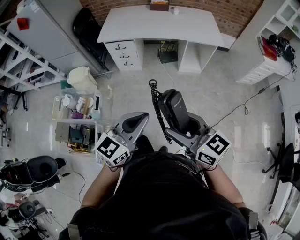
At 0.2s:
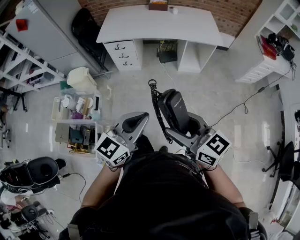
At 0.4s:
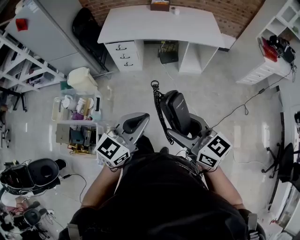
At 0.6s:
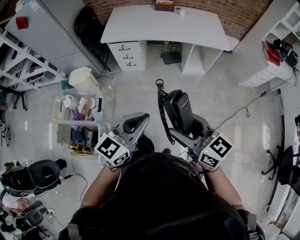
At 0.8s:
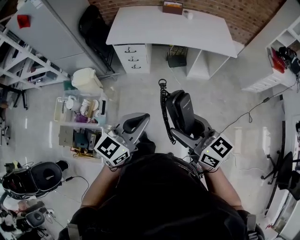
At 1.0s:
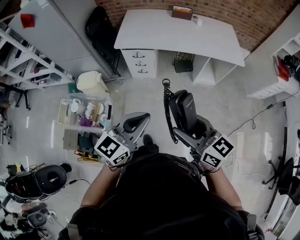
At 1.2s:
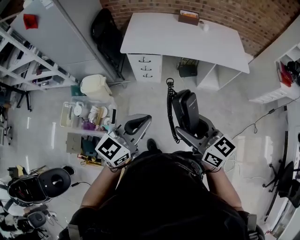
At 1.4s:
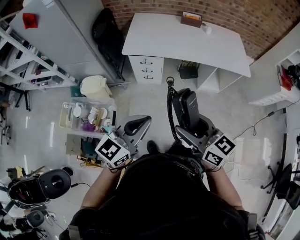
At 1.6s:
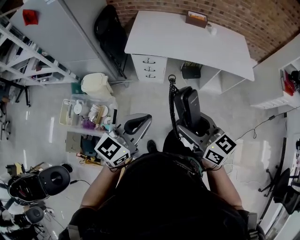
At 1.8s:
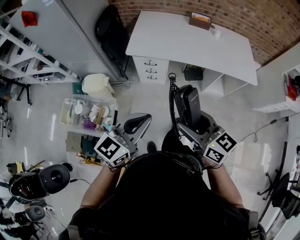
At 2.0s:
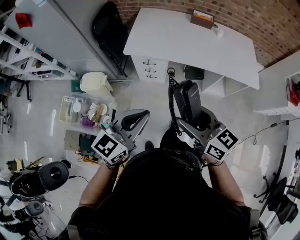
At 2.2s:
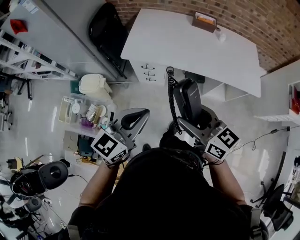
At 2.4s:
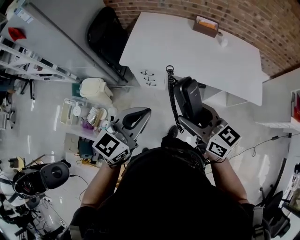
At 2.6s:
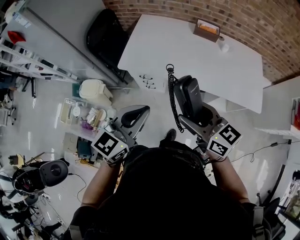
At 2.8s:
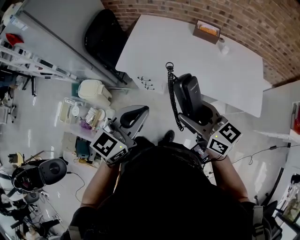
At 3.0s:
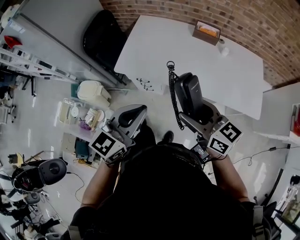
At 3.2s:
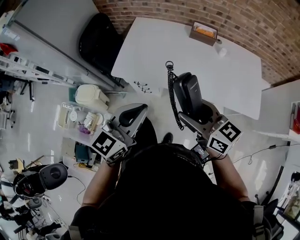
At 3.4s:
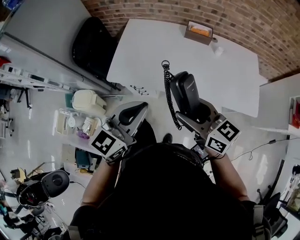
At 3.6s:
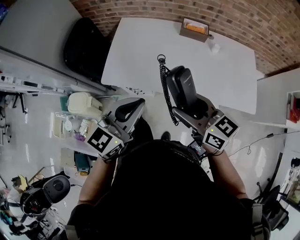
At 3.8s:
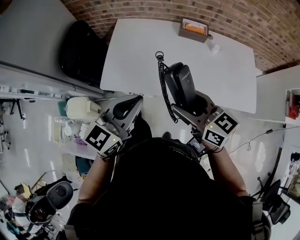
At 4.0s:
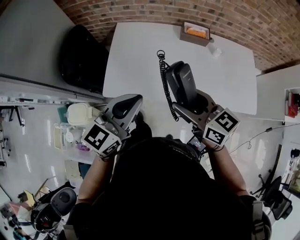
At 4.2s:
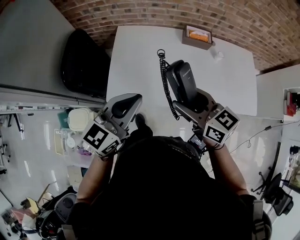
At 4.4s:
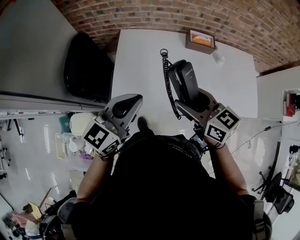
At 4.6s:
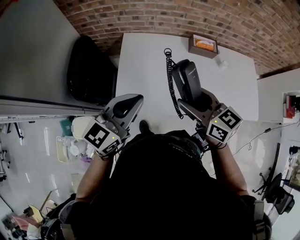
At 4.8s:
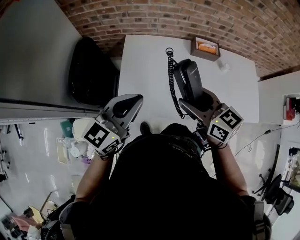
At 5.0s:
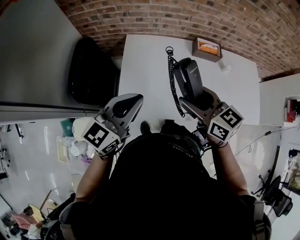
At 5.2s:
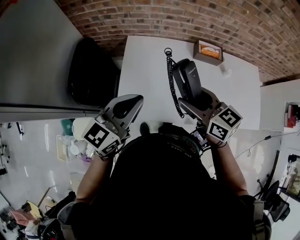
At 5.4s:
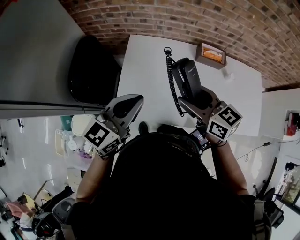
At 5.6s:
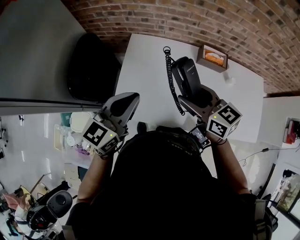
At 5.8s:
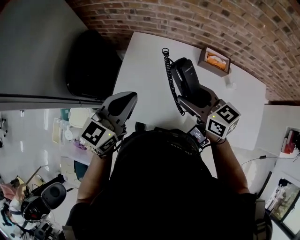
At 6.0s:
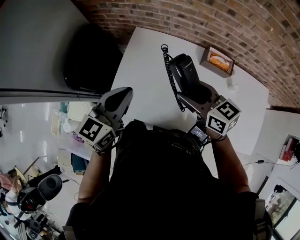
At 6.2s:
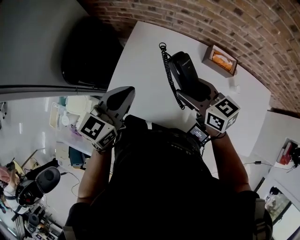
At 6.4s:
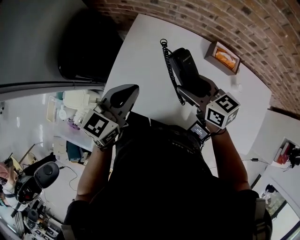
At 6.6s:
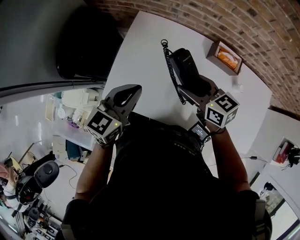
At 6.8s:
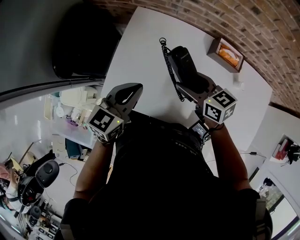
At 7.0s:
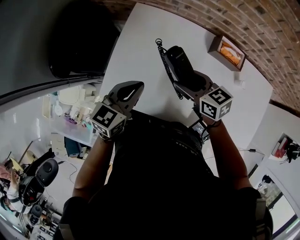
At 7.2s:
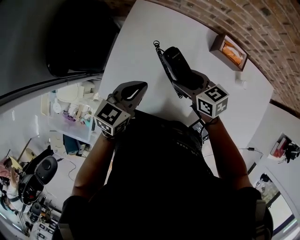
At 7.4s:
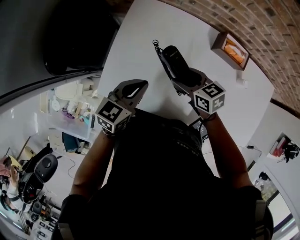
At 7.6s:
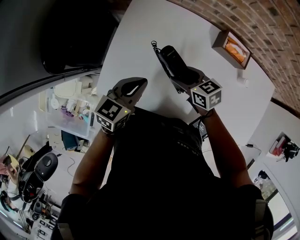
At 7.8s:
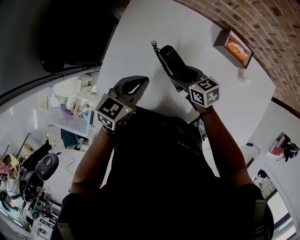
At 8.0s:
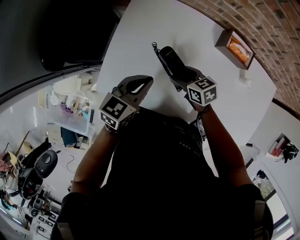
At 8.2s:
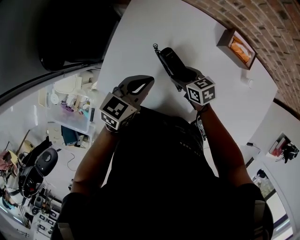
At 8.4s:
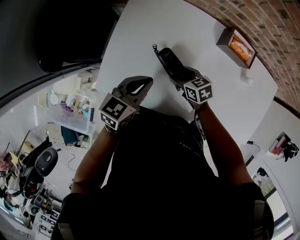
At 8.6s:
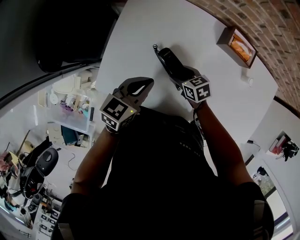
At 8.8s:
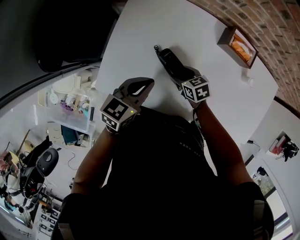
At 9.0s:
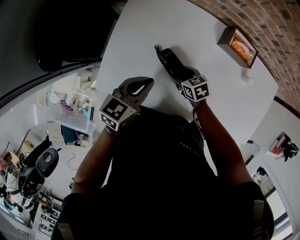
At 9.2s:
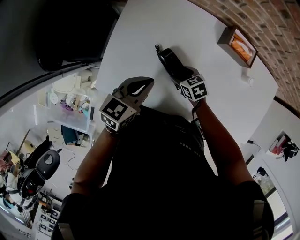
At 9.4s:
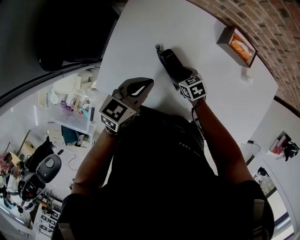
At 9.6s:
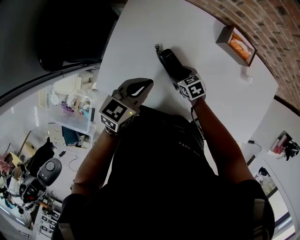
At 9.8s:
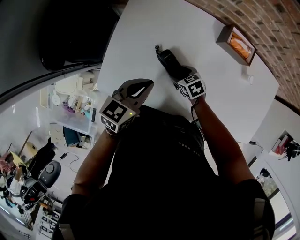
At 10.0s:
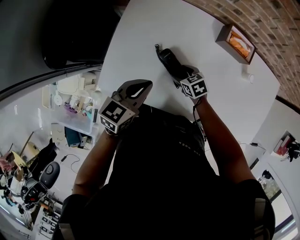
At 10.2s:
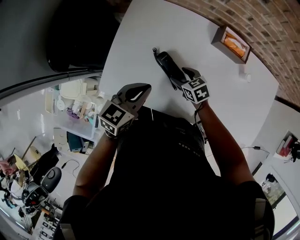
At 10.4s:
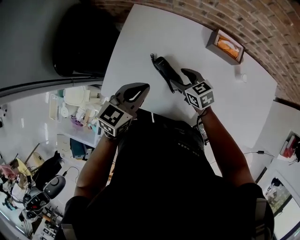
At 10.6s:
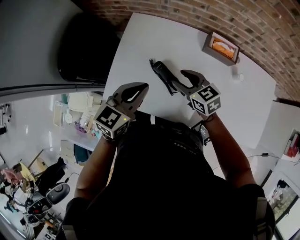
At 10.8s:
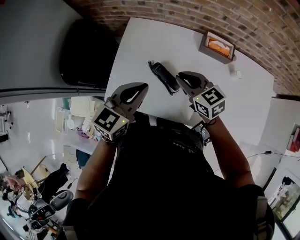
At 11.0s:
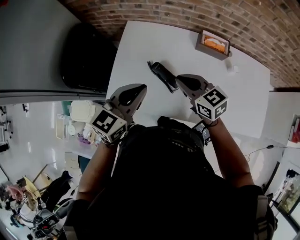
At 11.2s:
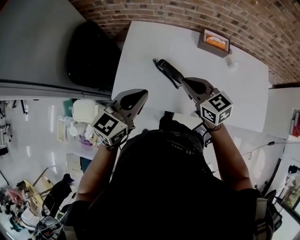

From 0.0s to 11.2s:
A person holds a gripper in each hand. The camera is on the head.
From 0.0s to 1.6s: Both grippers move forward and to the left, approximately 35 cm.
From 1.6s to 3.2s: Both grippers travel together forward and to the right, about 35 cm.
From 3.2s to 4.8s: The two grippers go roughly 30 cm forward and to the left.
From 4.8s to 6.4s: The left gripper is displaced downward, forward and to the right by approximately 15 cm, and changes its angle by about 30 degrees. Meanwhile the right gripper moves forward, downward and to the right, some 20 cm, and changes its angle by some 20 degrees.
From 6.4s to 8.0s: The two grippers go roughly 20 cm downward. The right gripper turns by approximately 20 degrees.
From 8.0s to 9.6s: The right gripper goes approximately 10 cm downward.
From 9.6s to 11.2s: The left gripper heads upward and backward, covering some 20 cm; the right gripper moves upward, some 30 cm, tilts its fingers approximately 40 degrees upward, and closes.

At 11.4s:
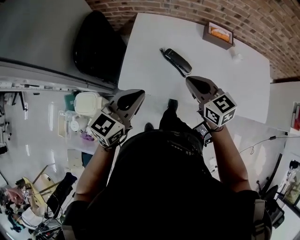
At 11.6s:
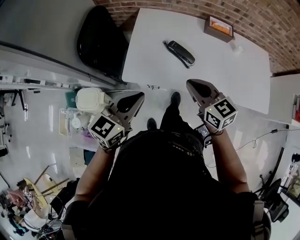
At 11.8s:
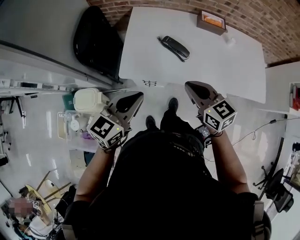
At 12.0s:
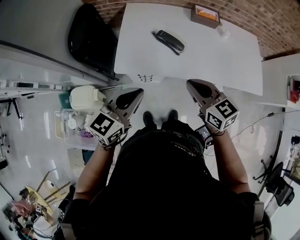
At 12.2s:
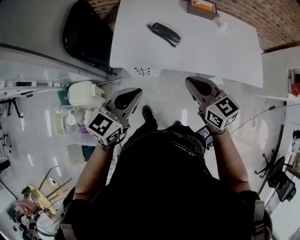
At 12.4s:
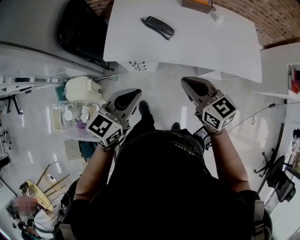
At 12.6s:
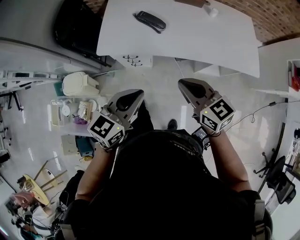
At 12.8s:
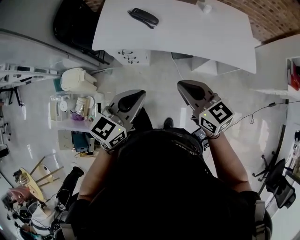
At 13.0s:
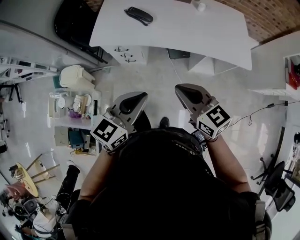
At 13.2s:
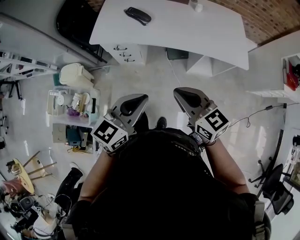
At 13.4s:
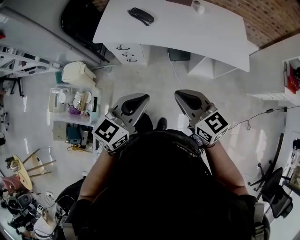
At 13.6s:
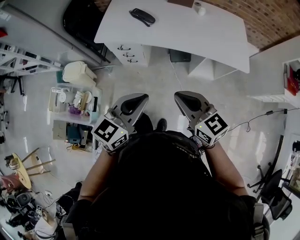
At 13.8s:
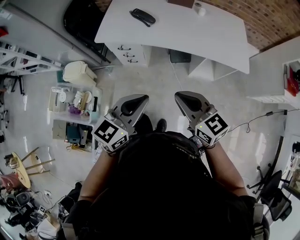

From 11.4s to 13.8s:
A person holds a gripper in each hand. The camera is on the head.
From 11.4s to 12.6s: The left gripper goes about 25 cm backward and to the right. Meanwhile the right gripper moves backward, roughly 25 cm.
From 12.6s to 13.8s: Both grippers travel together backward and to the right, some 20 cm.

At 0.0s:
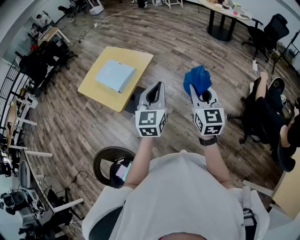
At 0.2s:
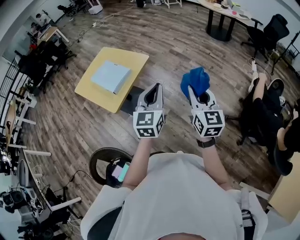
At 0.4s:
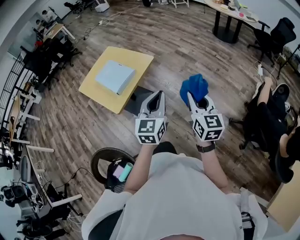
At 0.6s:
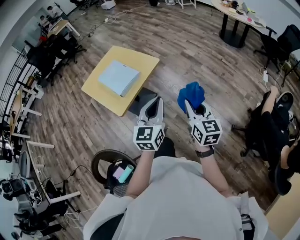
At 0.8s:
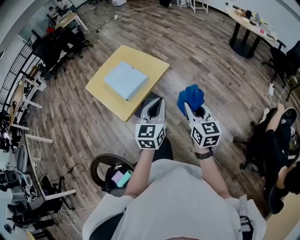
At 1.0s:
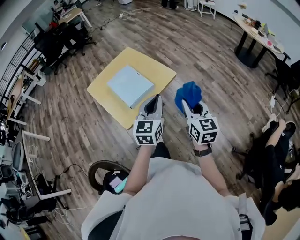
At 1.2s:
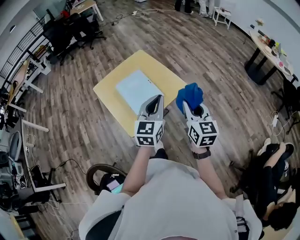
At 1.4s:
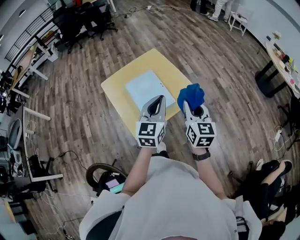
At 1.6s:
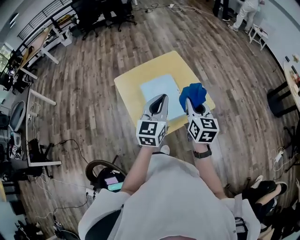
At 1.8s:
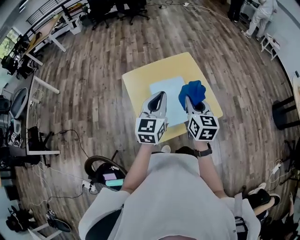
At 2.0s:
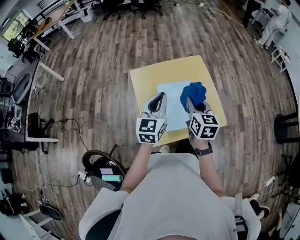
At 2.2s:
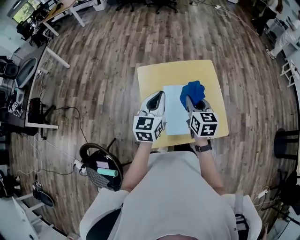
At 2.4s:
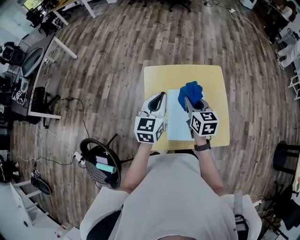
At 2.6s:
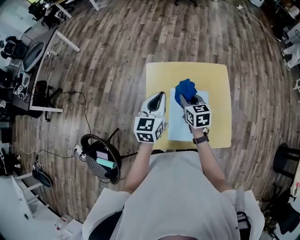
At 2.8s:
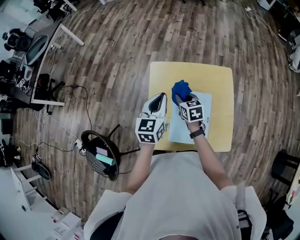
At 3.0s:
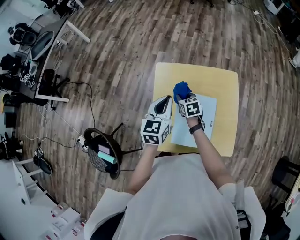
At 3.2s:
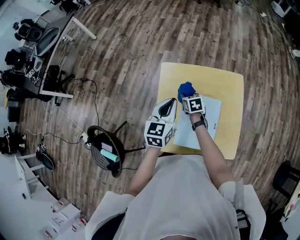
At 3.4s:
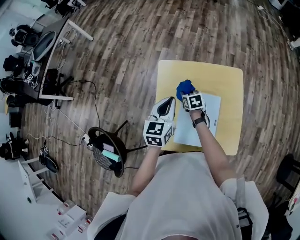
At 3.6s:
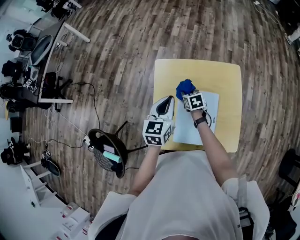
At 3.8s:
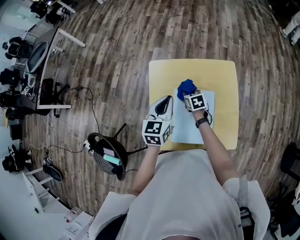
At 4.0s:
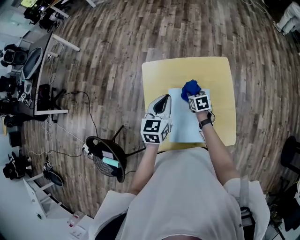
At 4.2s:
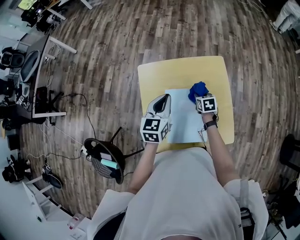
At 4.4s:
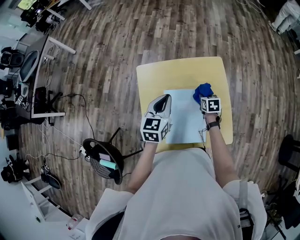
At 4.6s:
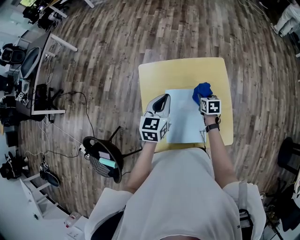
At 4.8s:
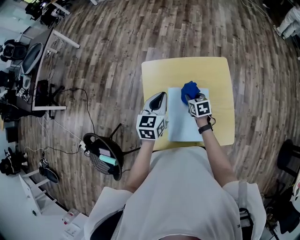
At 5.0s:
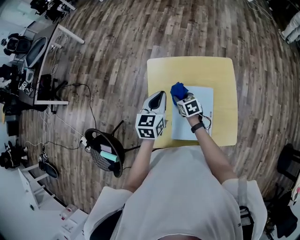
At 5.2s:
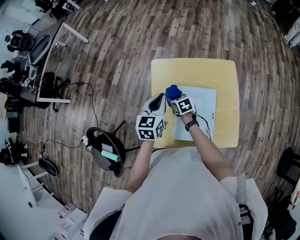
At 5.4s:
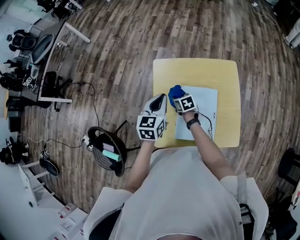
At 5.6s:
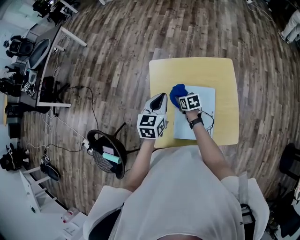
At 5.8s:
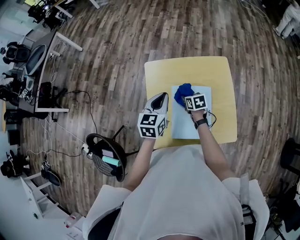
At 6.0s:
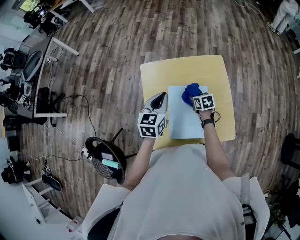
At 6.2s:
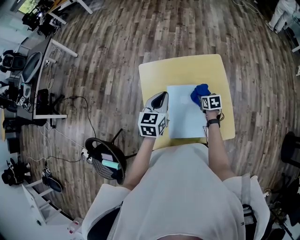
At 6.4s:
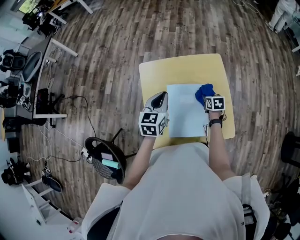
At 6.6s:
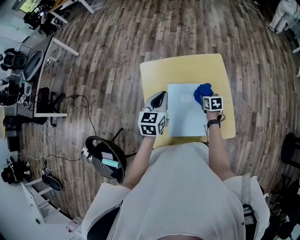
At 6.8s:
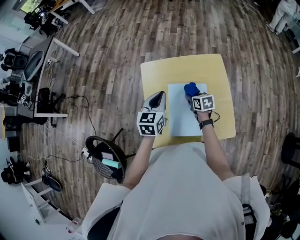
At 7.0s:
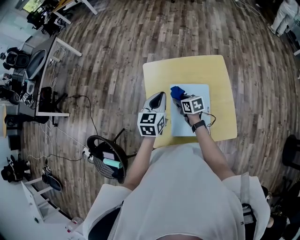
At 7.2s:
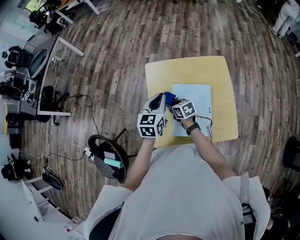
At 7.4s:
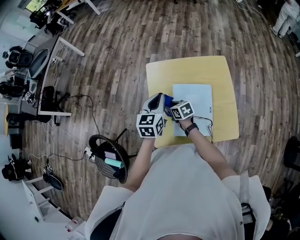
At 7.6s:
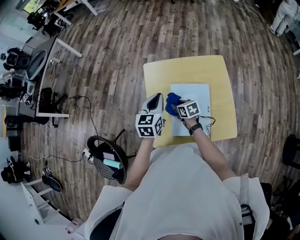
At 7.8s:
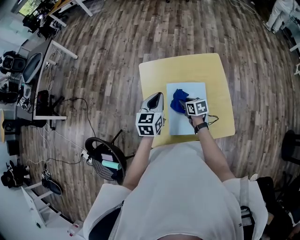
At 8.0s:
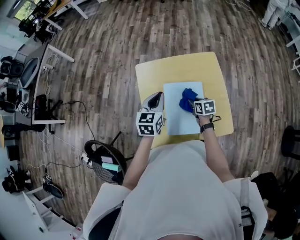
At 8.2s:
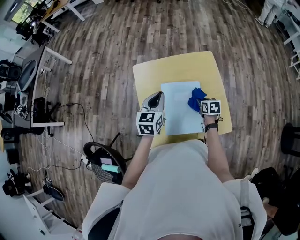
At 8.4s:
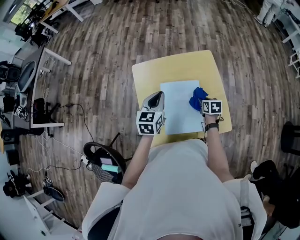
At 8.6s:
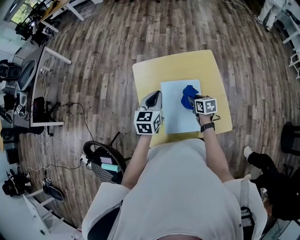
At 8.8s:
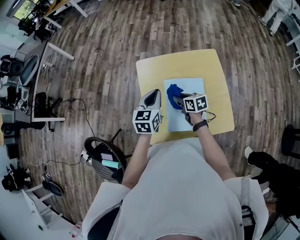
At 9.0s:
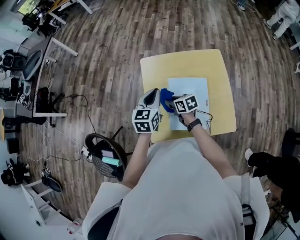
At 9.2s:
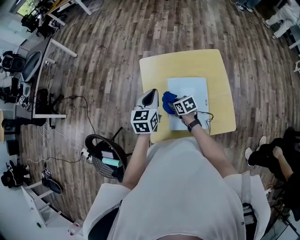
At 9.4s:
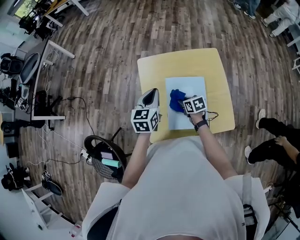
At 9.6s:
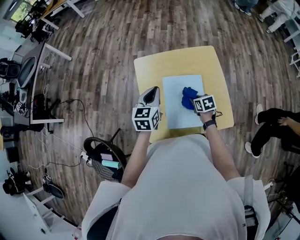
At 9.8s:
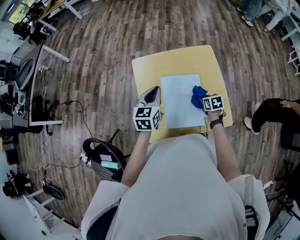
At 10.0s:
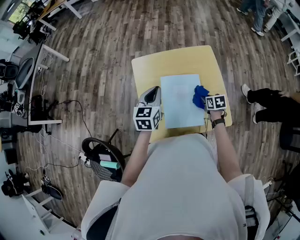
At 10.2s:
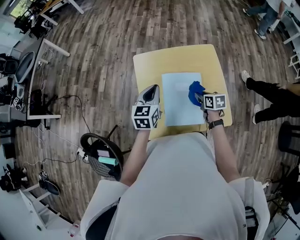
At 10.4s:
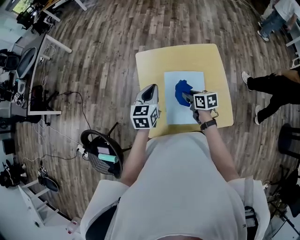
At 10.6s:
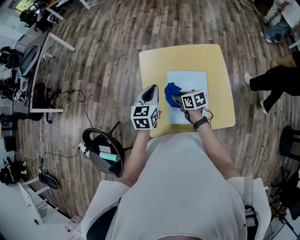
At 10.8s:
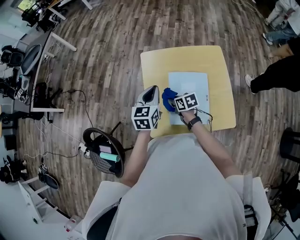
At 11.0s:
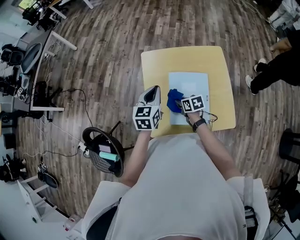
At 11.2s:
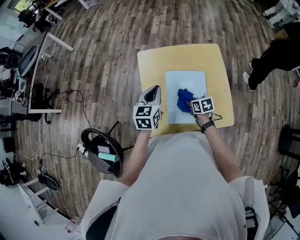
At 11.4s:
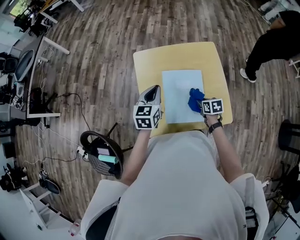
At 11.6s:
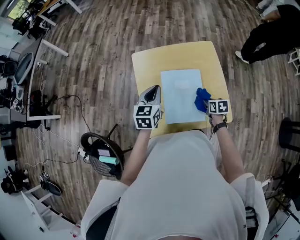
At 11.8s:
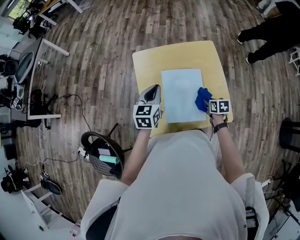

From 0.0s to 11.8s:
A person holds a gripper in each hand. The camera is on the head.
From 0.0s to 1.4s: Both grippers move forward and to the left, some 40 cm. The right gripper swivels some 30 degrees. The left gripper changes its angle by some 20 degrees.
From 1.4s to 3.0s: The left gripper ends up roughly 35 cm from where it was, and swivels approximately 40 degrees. Meanwhile the right gripper shifts by about 50 cm, and tilts its fingers some 30 degrees downward.
From 3.0s to 4.4s: The right gripper shifts some 20 cm to the right, and changes its angle by some 20 degrees. Meanwhile the left gripper heads to the right, covering some 5 cm.
From 4.4s to 6.0s: The right gripper travels to the left and back again, about 25 cm each way.
From 6.0s to 7.4s: The right gripper is displaced to the left by about 20 cm, and changes its angle by roughly 20 degrees.
From 7.4s to 8.8s: The right gripper shifts approximately 10 cm to the right.
From 8.8s to 10.4s: The right gripper goes left and right, some 25 cm each way, reversing 2 times.
From 10.4s to 11.8s: The right gripper heads to the right, backward and downward, covering about 15 cm, and swivels about 20 degrees.
